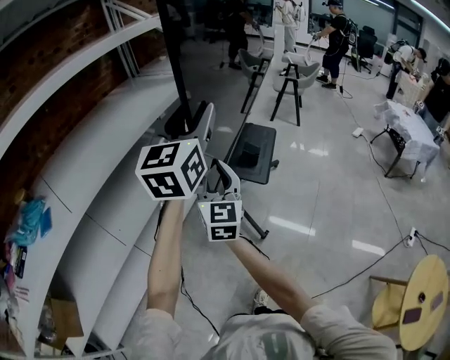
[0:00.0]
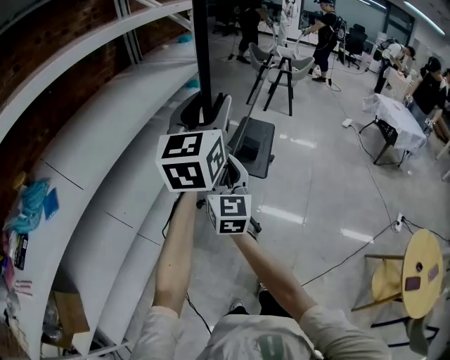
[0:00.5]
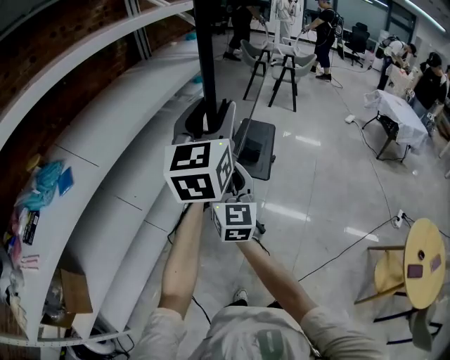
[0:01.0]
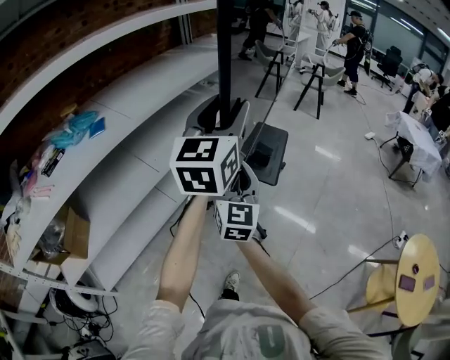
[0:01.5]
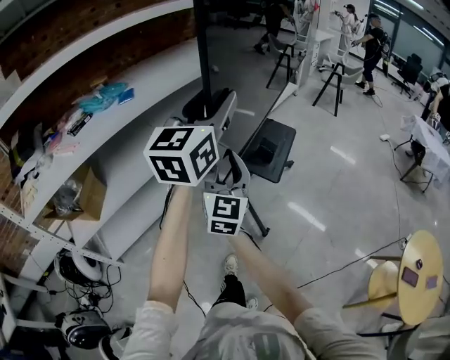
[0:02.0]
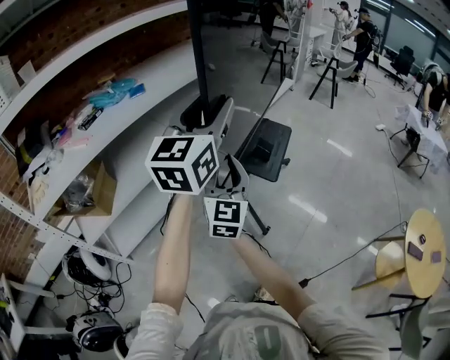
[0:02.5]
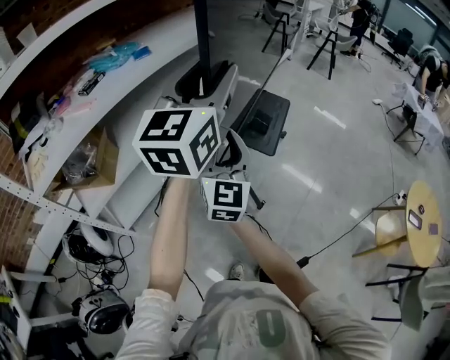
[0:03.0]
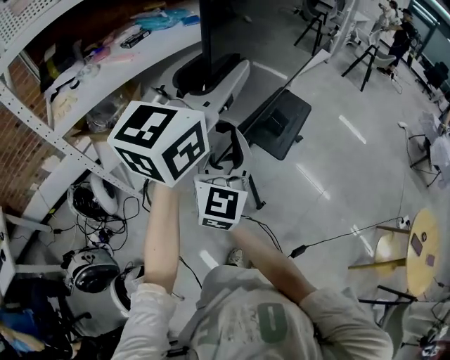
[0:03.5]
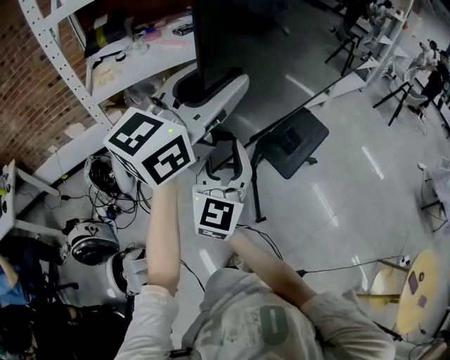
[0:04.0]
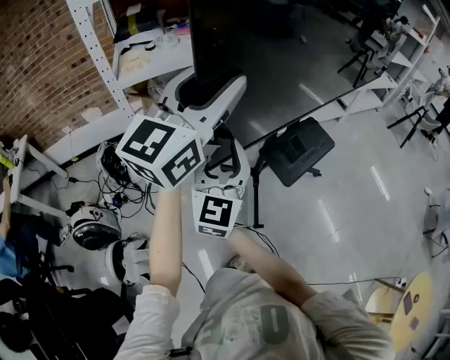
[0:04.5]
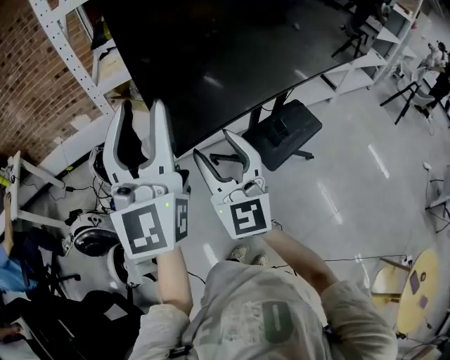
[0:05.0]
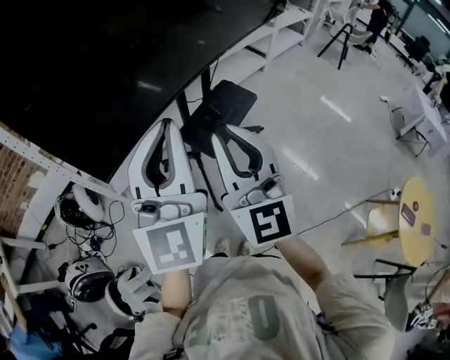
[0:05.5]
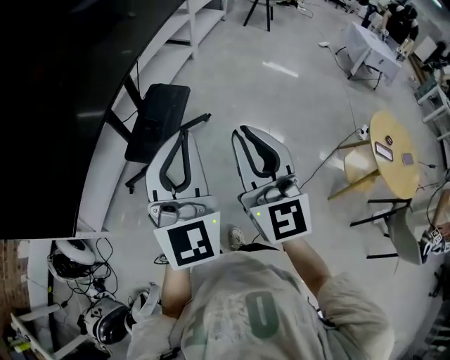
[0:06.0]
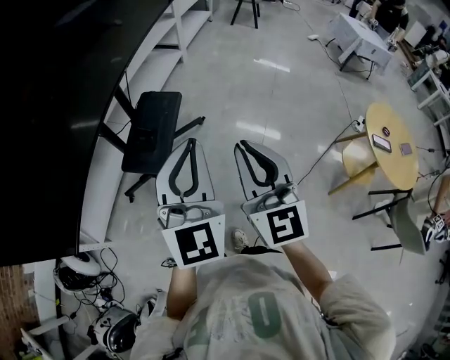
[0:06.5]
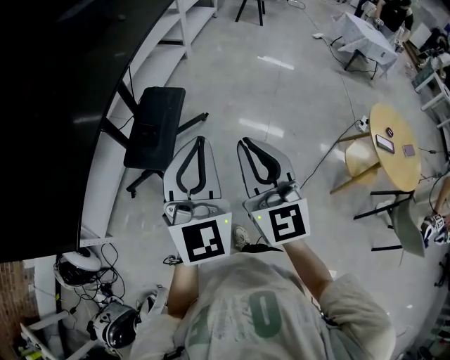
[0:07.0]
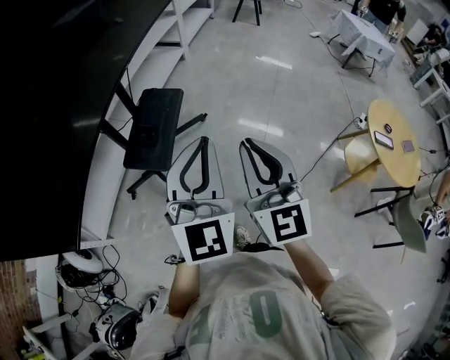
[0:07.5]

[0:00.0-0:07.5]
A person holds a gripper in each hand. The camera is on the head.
0:00.0 to 0:02.0: The pair of grippers is taken backward, about 50 cm.
0:02.0 to 0:04.0: The two grippers travel together, backward and to the left, roughly 40 cm.
0:04.0 to 0:05.5: The right gripper shifts by approximately 20 cm, and closes. Meanwhile the left gripper shifts by roughly 15 cm, swivels some 30 degrees, and closes its fingers.
0:05.5 to 0:07.5: The right gripper changes place by approximately 20 cm, and rotates about 30 degrees; the left gripper moves about 25 cm, and turns by approximately 30 degrees.

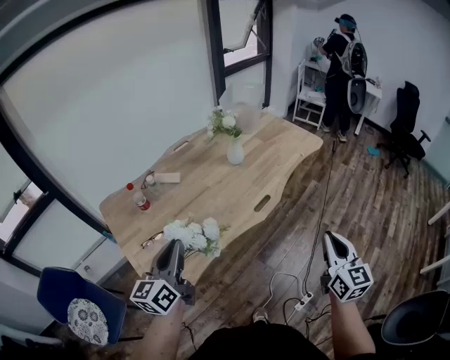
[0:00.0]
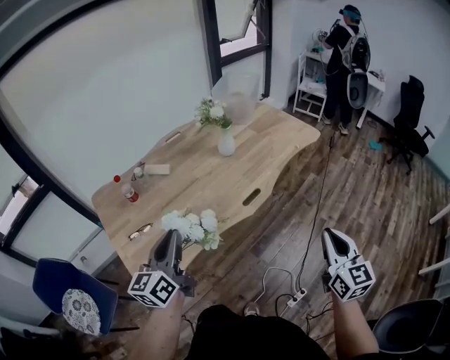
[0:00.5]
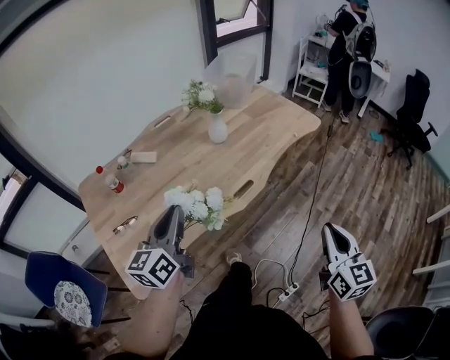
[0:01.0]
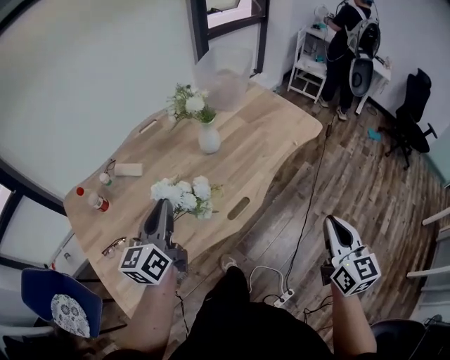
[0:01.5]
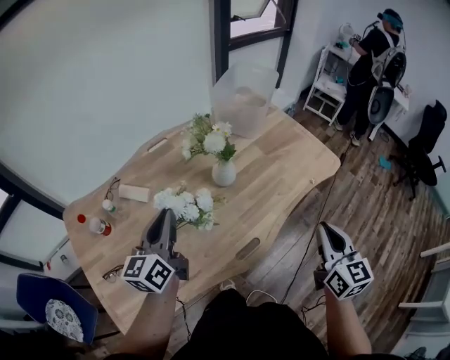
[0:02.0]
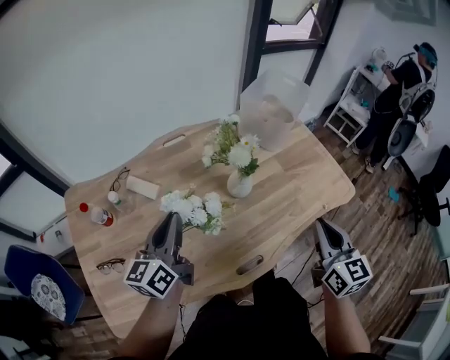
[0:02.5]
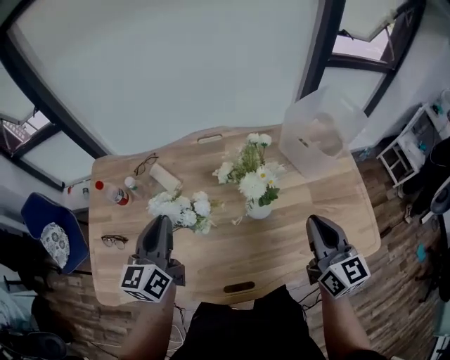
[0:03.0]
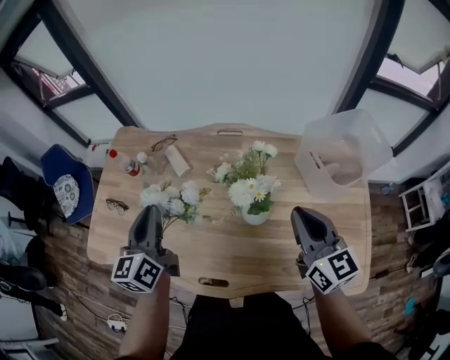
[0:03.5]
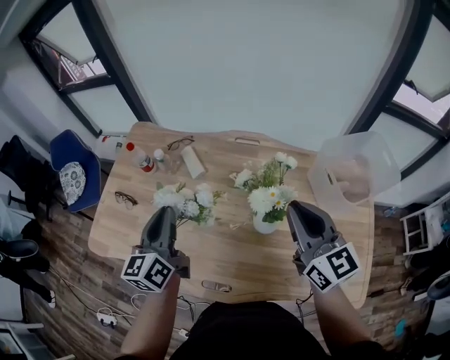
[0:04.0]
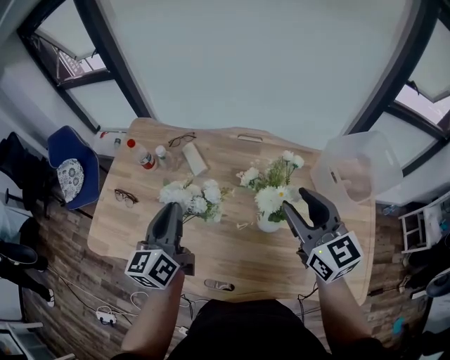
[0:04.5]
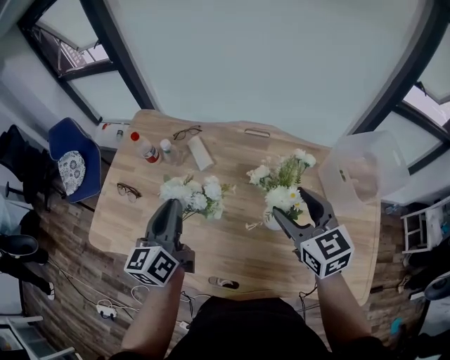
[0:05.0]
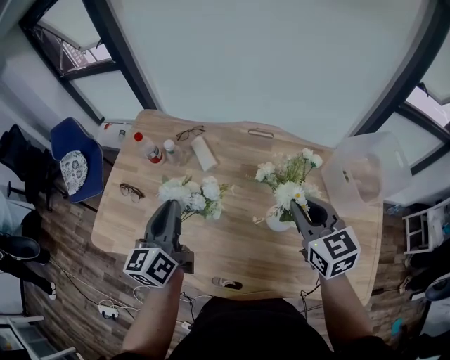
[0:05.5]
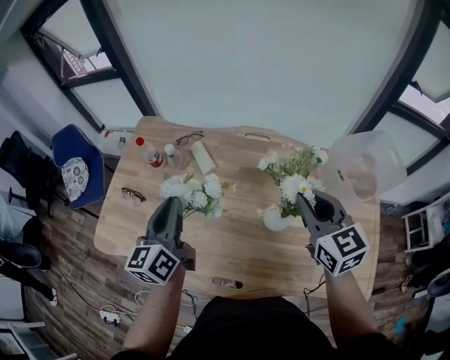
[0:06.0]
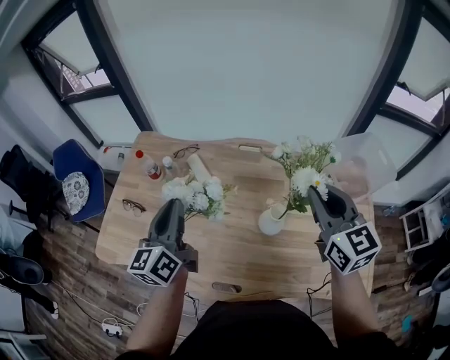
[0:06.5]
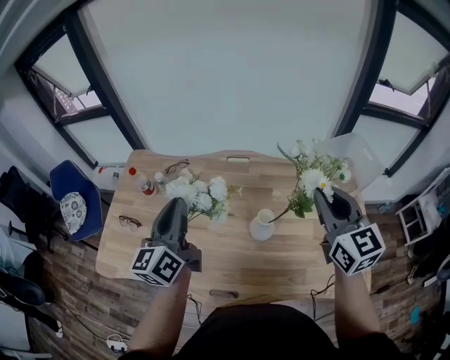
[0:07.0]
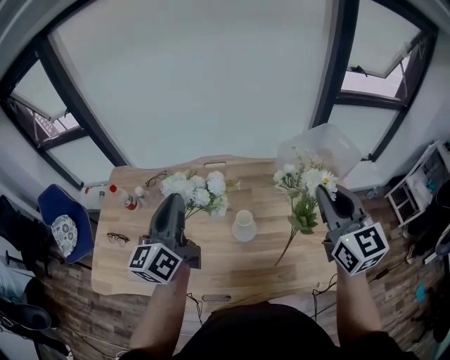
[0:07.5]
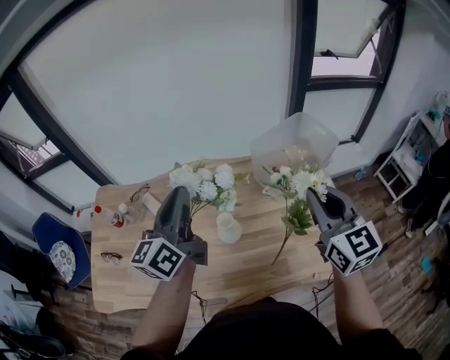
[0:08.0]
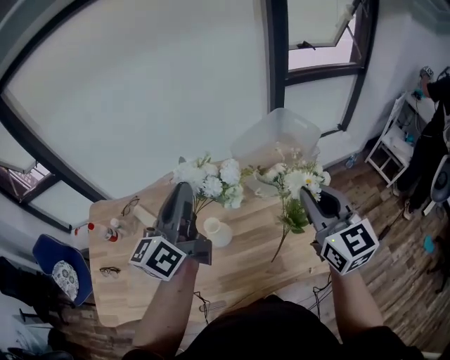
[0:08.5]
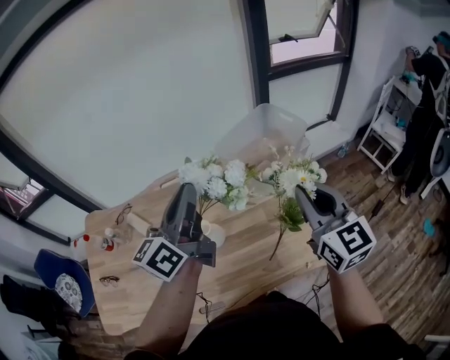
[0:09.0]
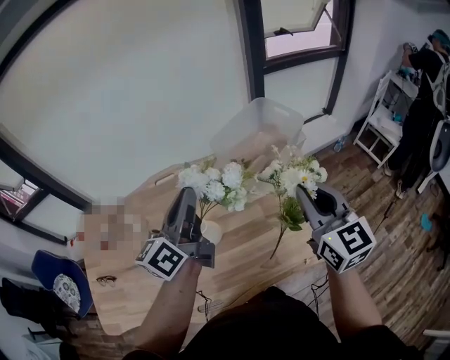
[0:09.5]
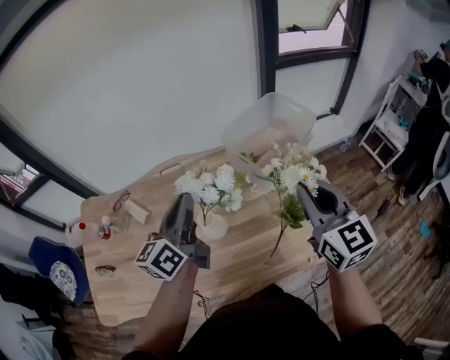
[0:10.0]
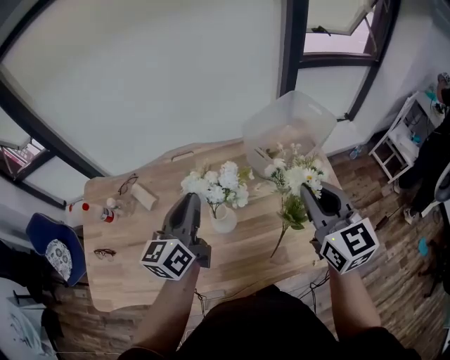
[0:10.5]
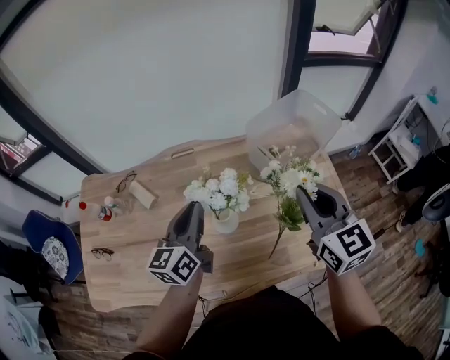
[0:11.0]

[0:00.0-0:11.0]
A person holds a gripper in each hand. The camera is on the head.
0:00.0 to 0:02.0: Both grippers travel together forward, some 30 cm.
0:02.0 to 0:03.5: The left gripper swivels roughly 50 degrees. Meanwhile the right gripper changes place by about 35 cm, and turns by approximately 60 degrees.
0:03.5 to 0:05.5: The right gripper is displaced forward and to the left by some 10 cm, turns by roughly 20 degrees, and opens, then closes again.
0:05.5 to 0:07.5: The right gripper heads to the right, upward and backward, covering roughly 25 cm, and rotates approximately 30 degrees; the left gripper shifts approximately 15 cm to the right and upward, and changes its angle by about 20 degrees.
0:07.5 to 0:09.0: The right gripper shifts approximately 10 cm to the right, while the left gripper travels to the right by about 20 cm, and changes its angle by some 30 degrees.
0:09.0 to 0:11.0: The left gripper travels downward and to the left by approximately 15 cm, and changes its angle by approximately 20 degrees. The right gripper shifts about 10 cm to the left.

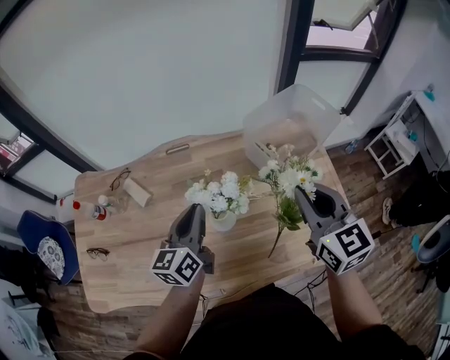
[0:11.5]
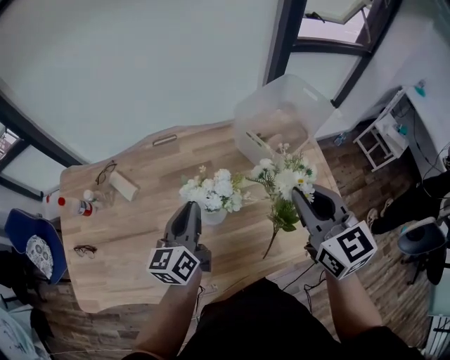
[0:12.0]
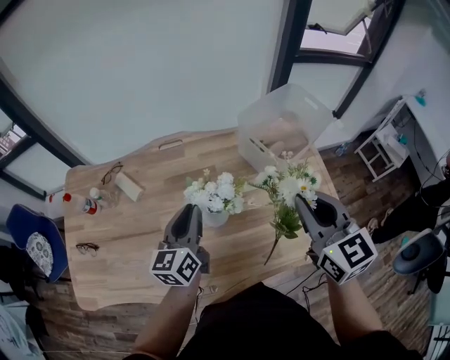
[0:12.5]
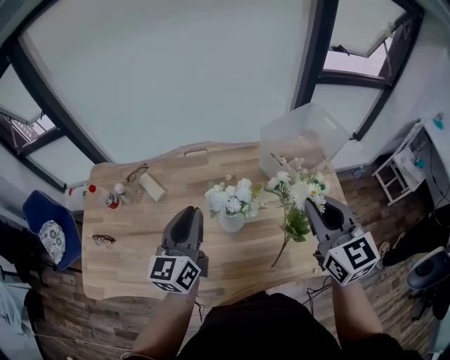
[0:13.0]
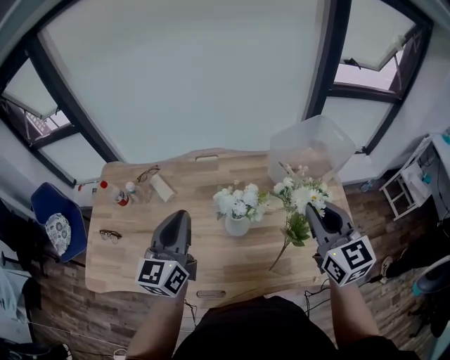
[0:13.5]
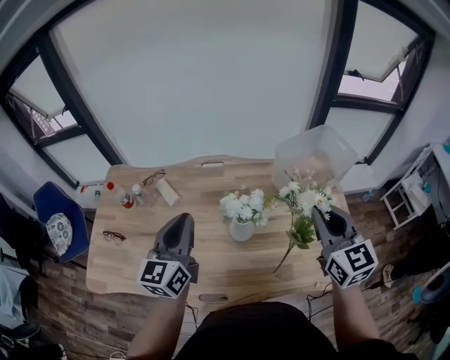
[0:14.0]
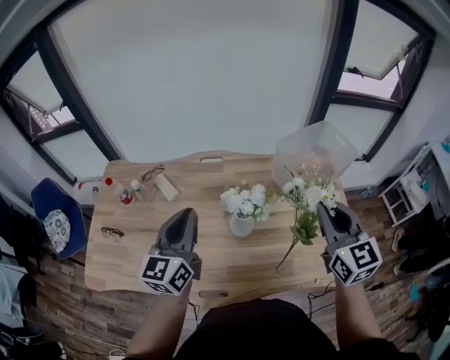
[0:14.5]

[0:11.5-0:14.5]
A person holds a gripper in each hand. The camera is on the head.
0:11.5 to 0:13.0: The left gripper travels upward by approximately 5 cm.
0:13.0 to 0:14.5: The left gripper ends up some 5 cm from where it was.

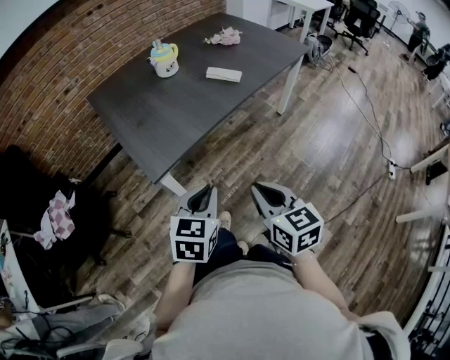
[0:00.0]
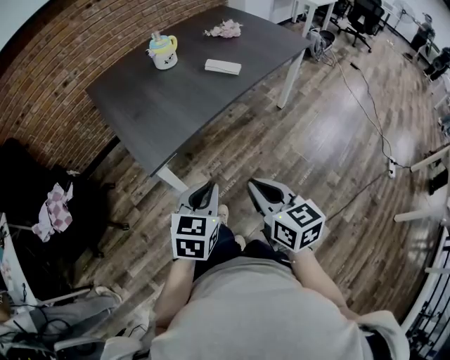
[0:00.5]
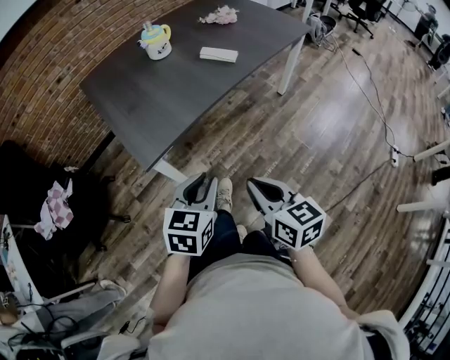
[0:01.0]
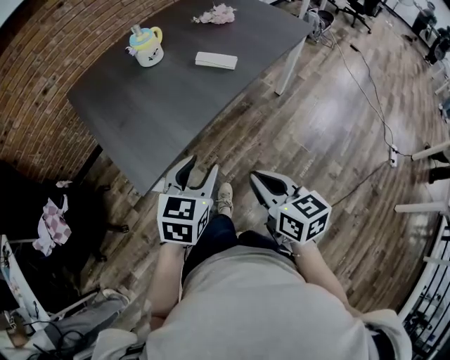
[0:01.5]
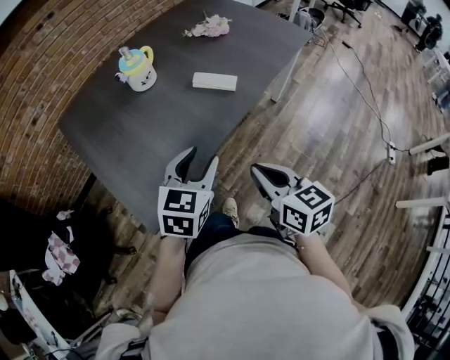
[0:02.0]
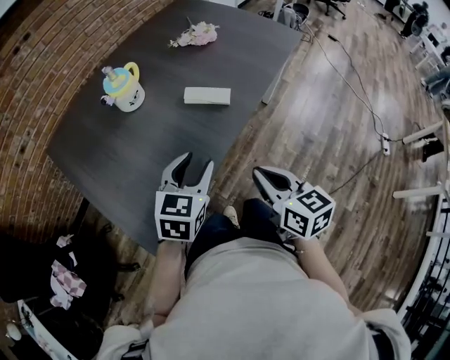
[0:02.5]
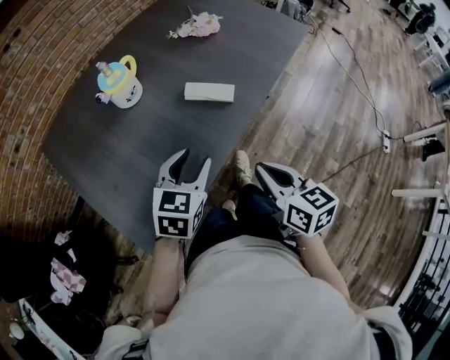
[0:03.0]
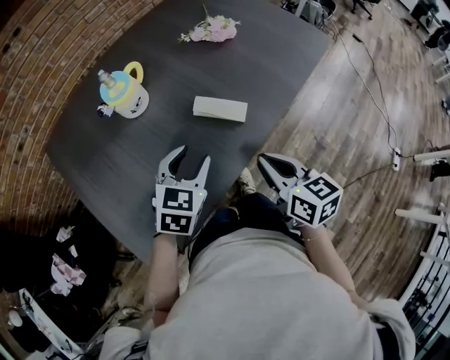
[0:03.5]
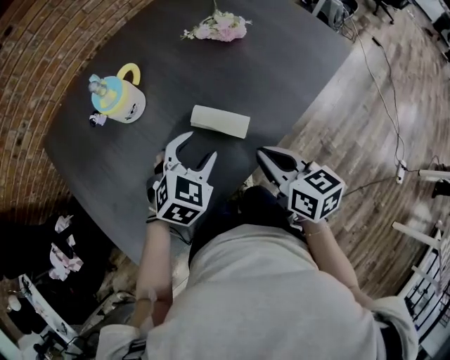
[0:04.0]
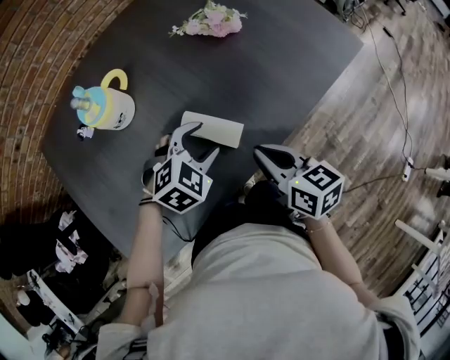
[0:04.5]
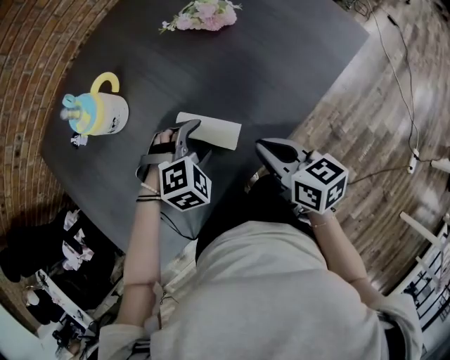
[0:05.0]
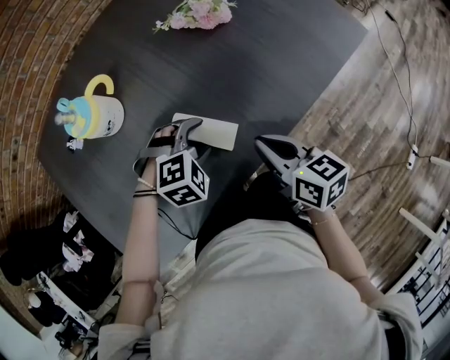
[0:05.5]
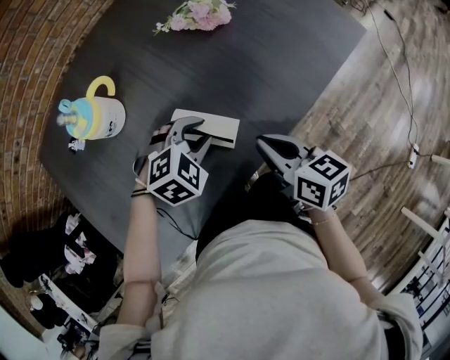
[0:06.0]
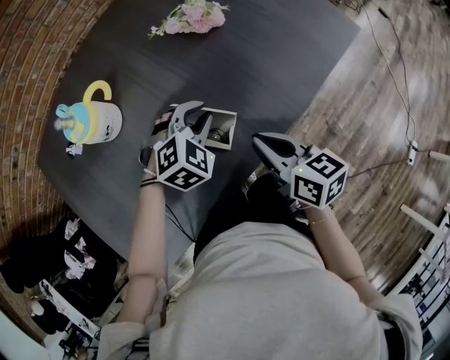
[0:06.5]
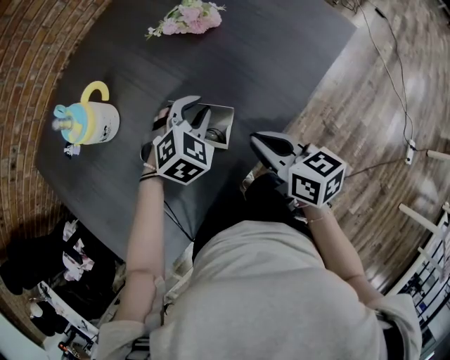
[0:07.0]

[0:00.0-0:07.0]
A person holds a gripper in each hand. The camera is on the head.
0:00.0 to 0:02.0: The grippers both shift forward by roughly 25 cm. The left gripper opens.
0:02.0 to 0:03.5: The grippers both shift forward by roughly 20 cm.
0:03.5 to 0:05.0: The left gripper is displaced forward, downward and to the right by roughly 20 cm, and twists about 40 degrees clockwise, seen from behind; the right gripper goes some 15 cm forward, to the right and downward.
0:05.0 to 0:07.0: The left gripper heads forward, covering about 10 cm, and closes.
